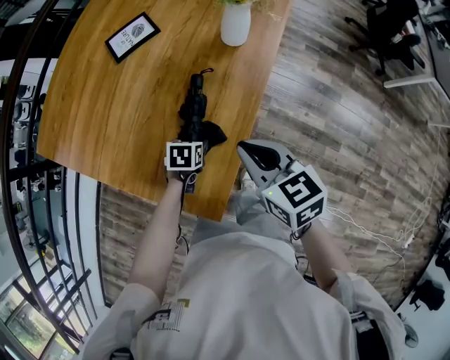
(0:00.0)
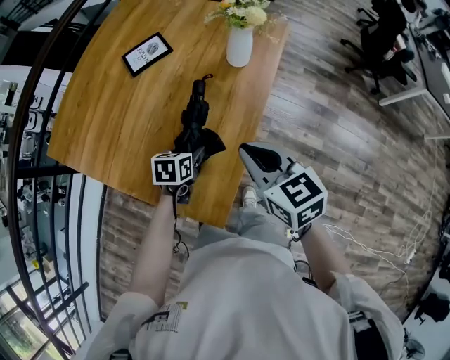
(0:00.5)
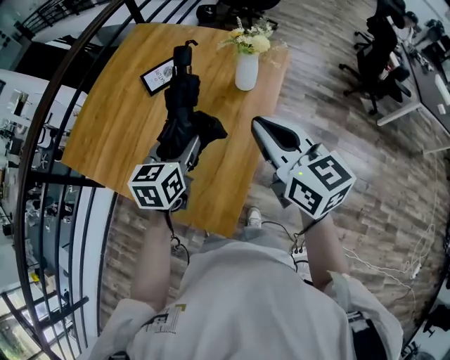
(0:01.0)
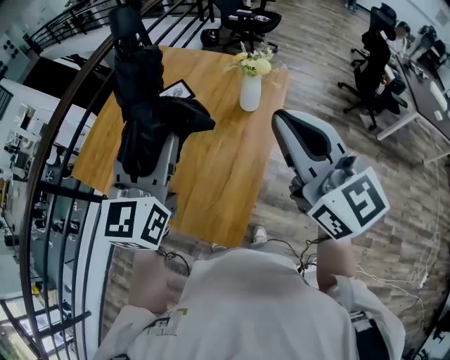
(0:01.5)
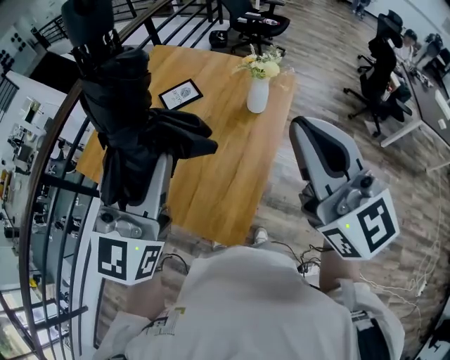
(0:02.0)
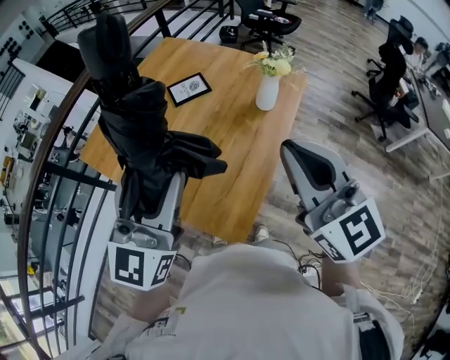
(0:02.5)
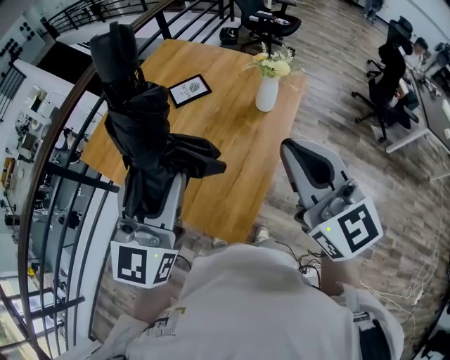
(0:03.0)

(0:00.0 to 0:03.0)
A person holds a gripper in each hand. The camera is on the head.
0:00.0 - 0:01.5: The left gripper moves upward, about 60 cm, and tips its fingers upward by roughly 70 degrees. Meanwhile the right gripper shifts some 35 cm upward, and points its fingers approximately 40 degrees further upward.
0:01.5 - 0:03.0: The left gripper goes approximately 10 cm backward, while the right gripper shifts by roughly 5 cm.

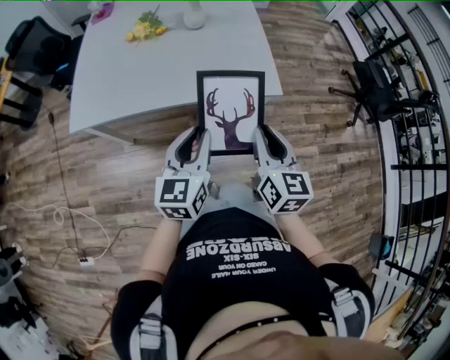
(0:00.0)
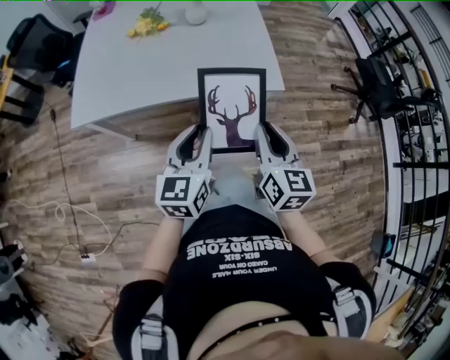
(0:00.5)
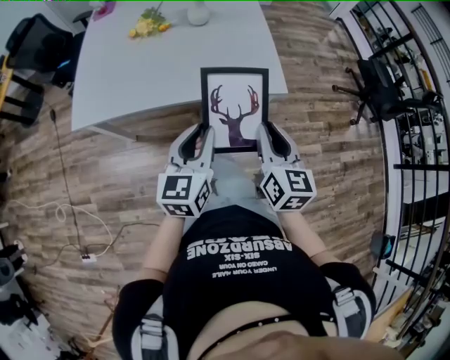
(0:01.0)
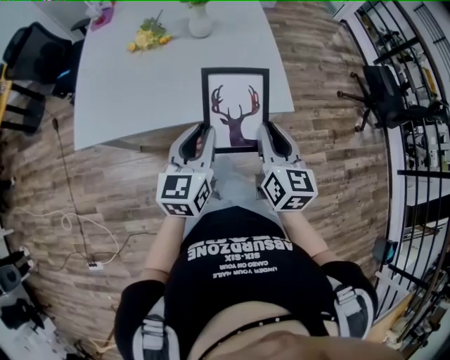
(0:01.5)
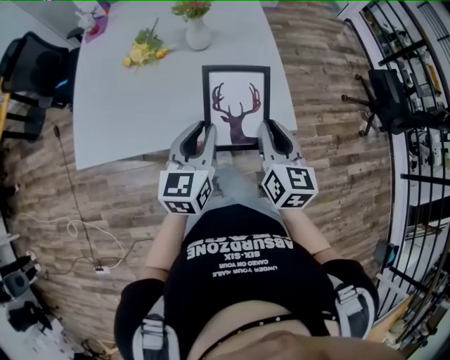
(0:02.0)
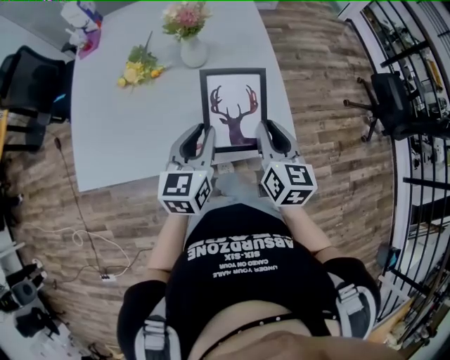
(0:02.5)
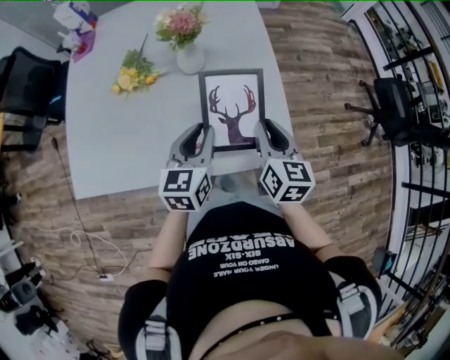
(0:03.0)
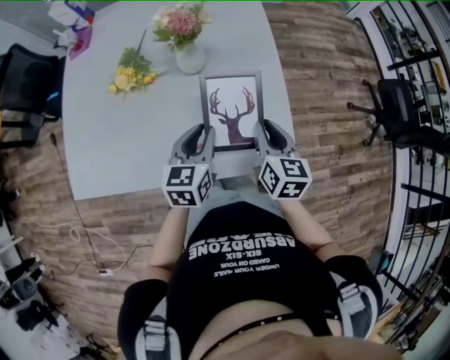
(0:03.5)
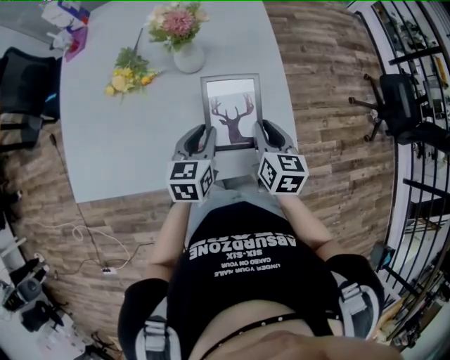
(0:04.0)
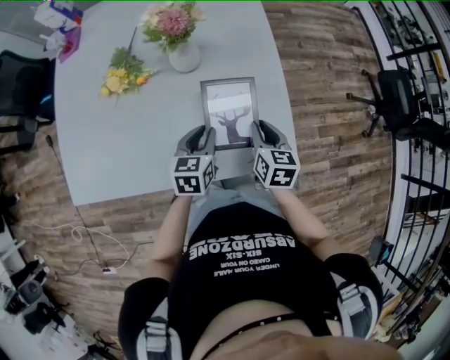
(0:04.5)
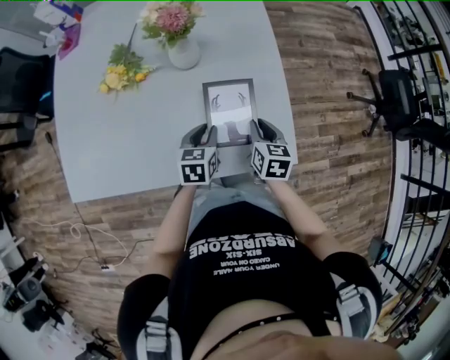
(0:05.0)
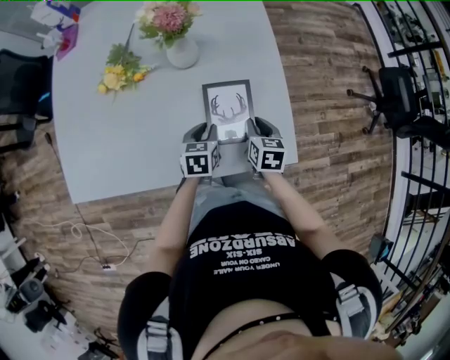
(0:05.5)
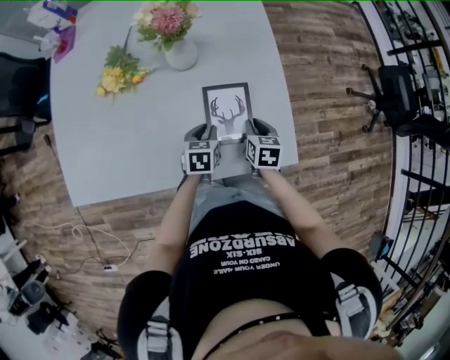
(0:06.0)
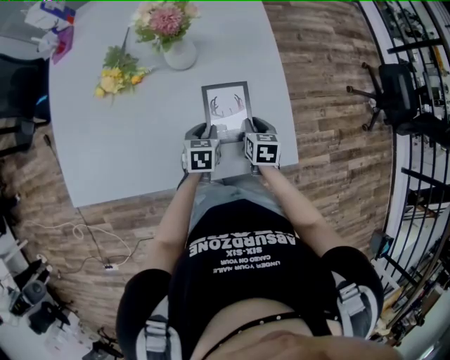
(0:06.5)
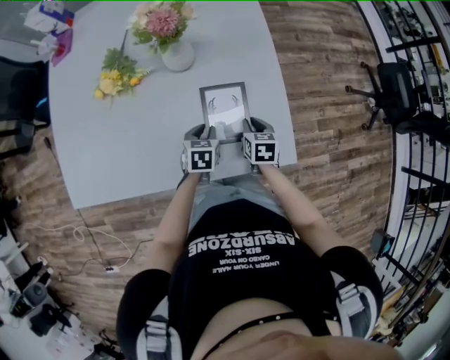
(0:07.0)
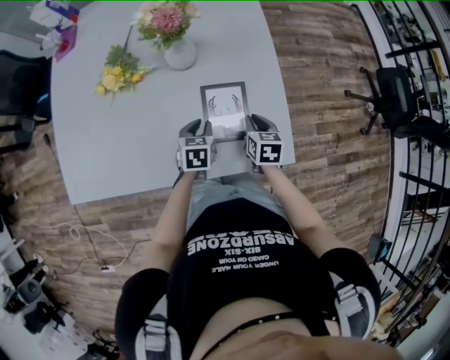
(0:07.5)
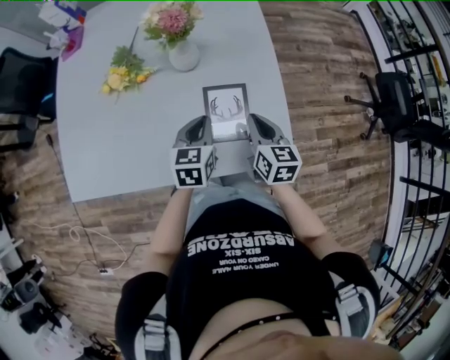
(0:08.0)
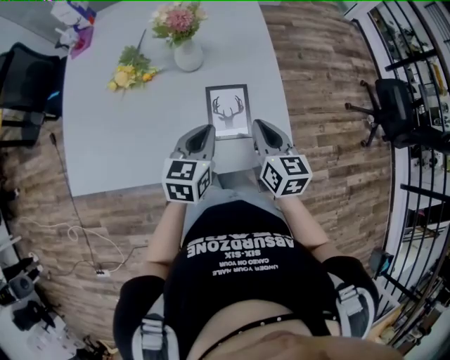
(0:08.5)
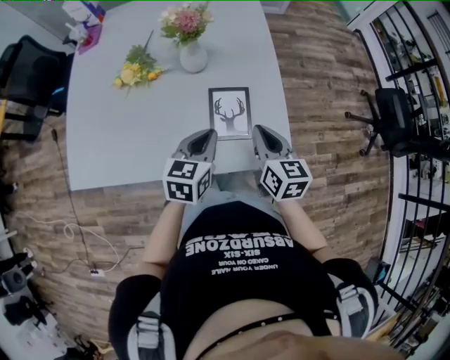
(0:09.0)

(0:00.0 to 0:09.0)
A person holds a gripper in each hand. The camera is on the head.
0:00.0 - 0:02.0: The two grippers go about 20 cm forward.
0:02.0 - 0:04.5: Both grippers travel together forward and downward, about 25 cm. The left gripper turns by approximately 20 degrees.
0:04.5 - 0:07.0: The two grippers go some 10 cm downward.
0:07.0 - 0:09.0: Both grippers travel together upward, roughly 20 cm. The right gripper rotates some 30 degrees; the left gripper changes its angle by approximately 20 degrees.

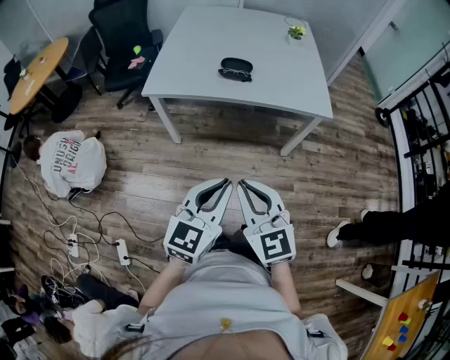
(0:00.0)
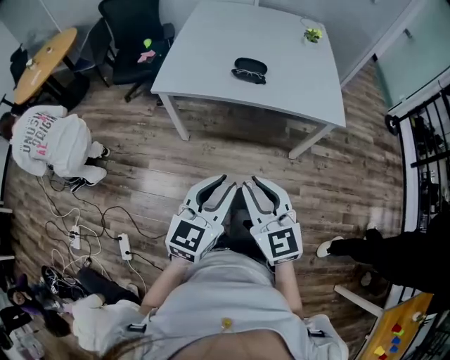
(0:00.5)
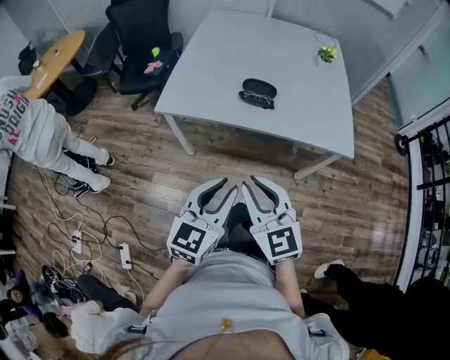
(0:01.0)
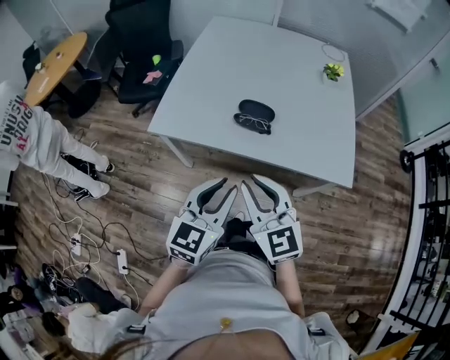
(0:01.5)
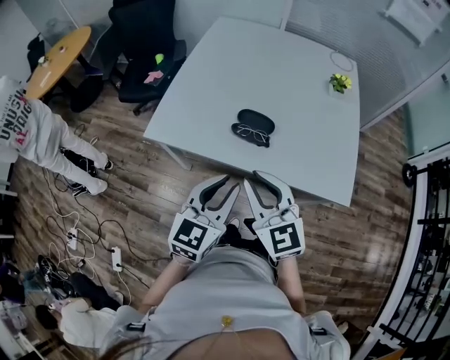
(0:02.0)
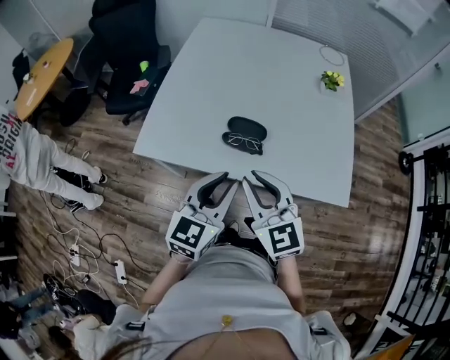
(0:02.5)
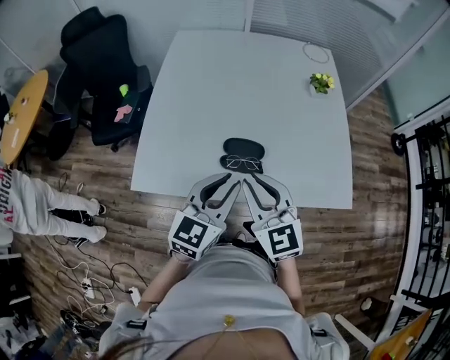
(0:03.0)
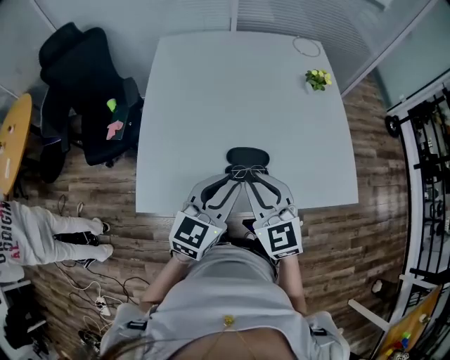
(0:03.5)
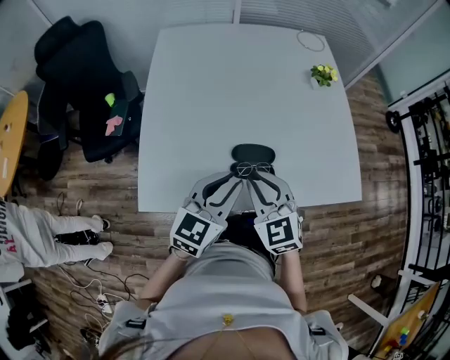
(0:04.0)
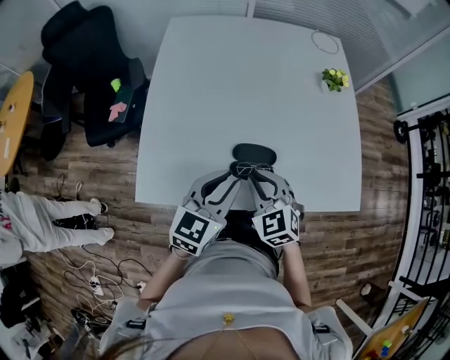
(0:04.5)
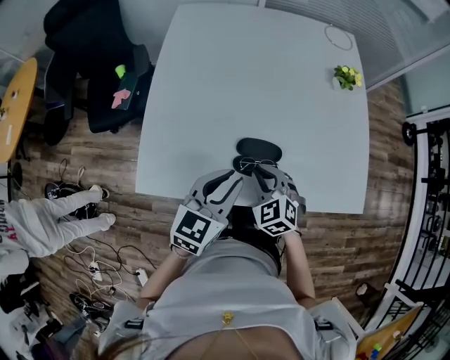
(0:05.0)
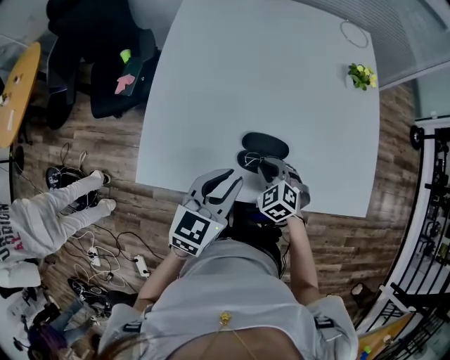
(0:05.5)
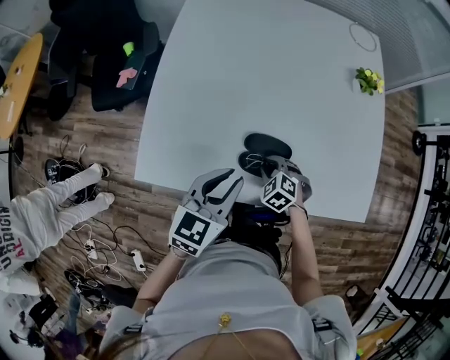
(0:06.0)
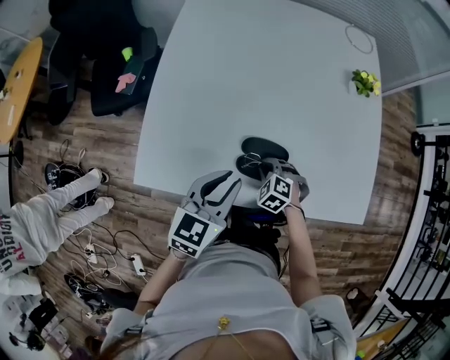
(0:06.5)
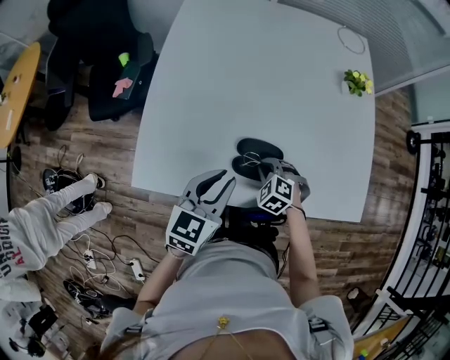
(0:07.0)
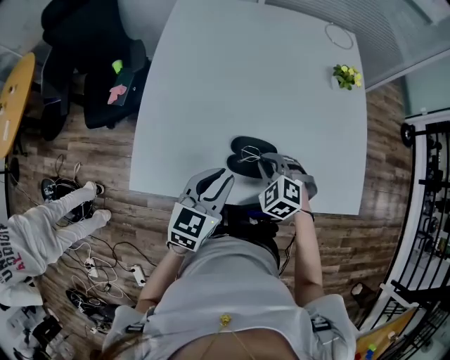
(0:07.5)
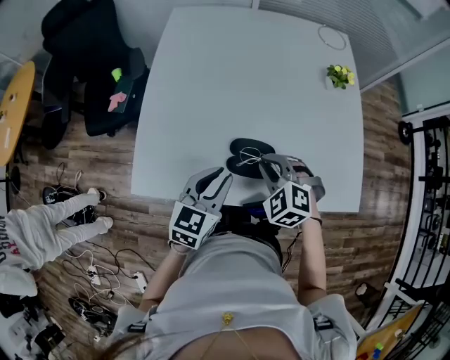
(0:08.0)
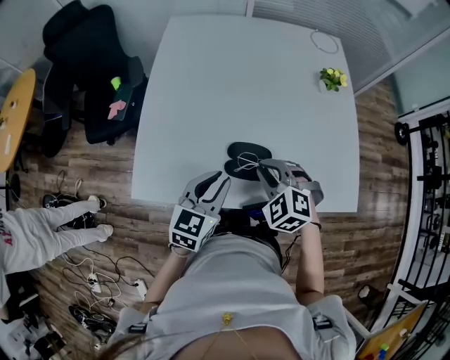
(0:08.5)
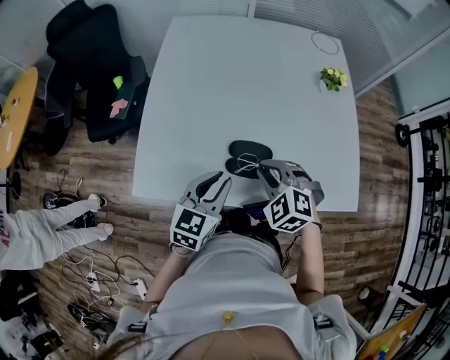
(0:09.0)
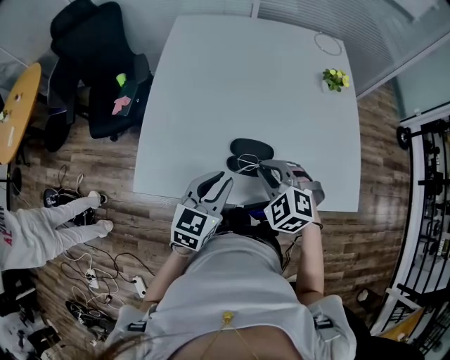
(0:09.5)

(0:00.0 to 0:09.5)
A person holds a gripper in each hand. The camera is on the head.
0:00.0 - 0:02.0: The grippers both shift forward by some 35 cm.
0:02.0 - 0:04.0: The grippers both shift forward by roughly 20 cm. The right gripper swivels about 20 degrees. The left gripper rotates about 20 degrees.
0:04.0 - 0:05.5: The right gripper shifts approximately 20 cm downward, and changes its angle by approximately 30 degrees.
0:05.5 - 0:07.5: The right gripper moves some 5 cm.
0:07.5 - 0:09.5: The right gripper is displaced upward by approximately 10 cm.

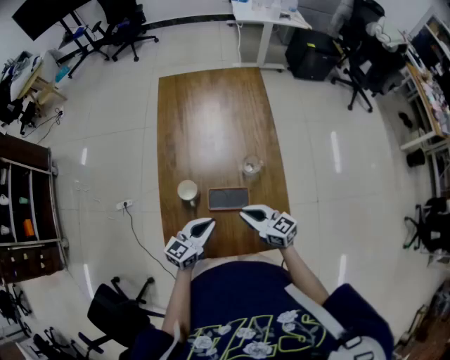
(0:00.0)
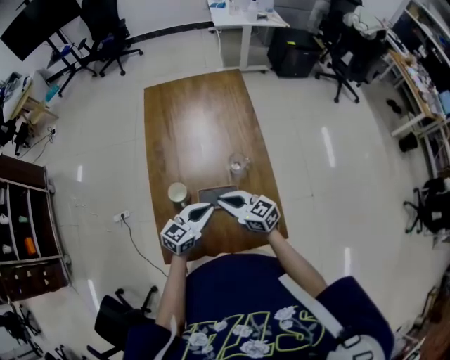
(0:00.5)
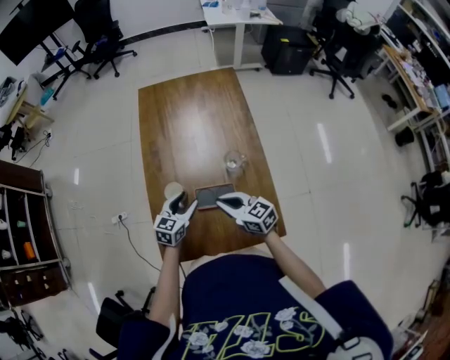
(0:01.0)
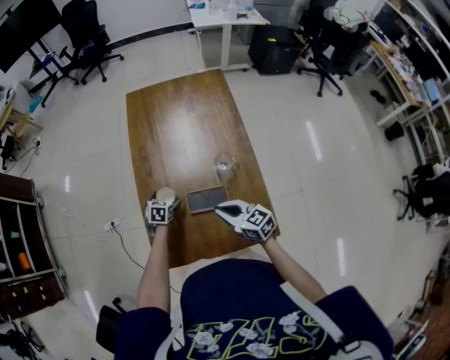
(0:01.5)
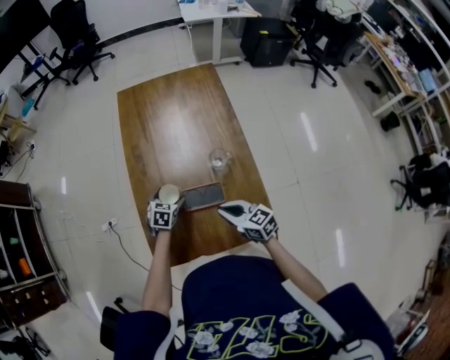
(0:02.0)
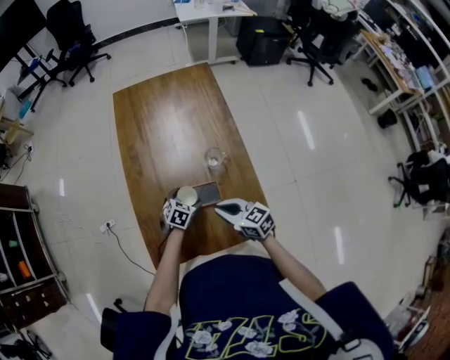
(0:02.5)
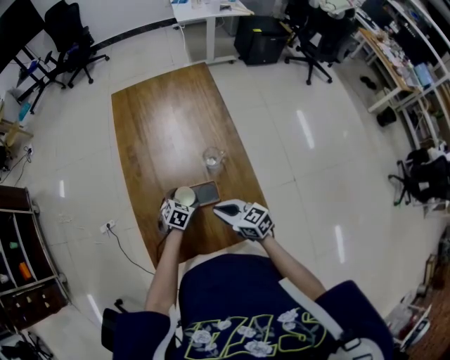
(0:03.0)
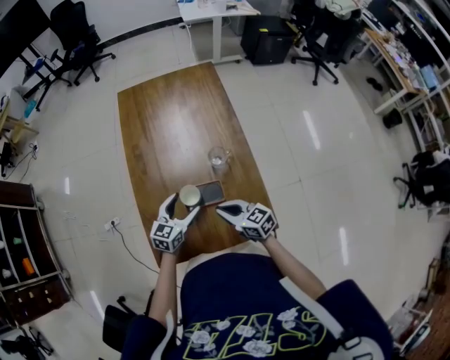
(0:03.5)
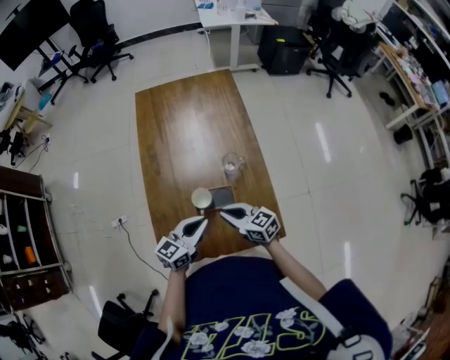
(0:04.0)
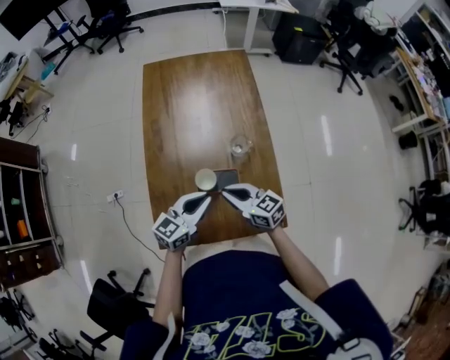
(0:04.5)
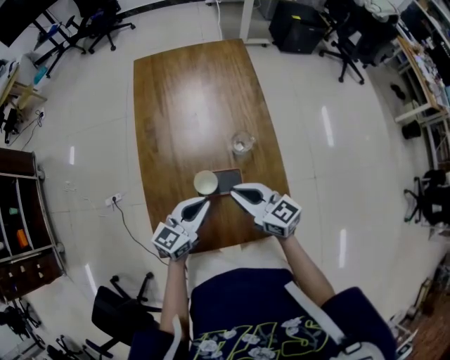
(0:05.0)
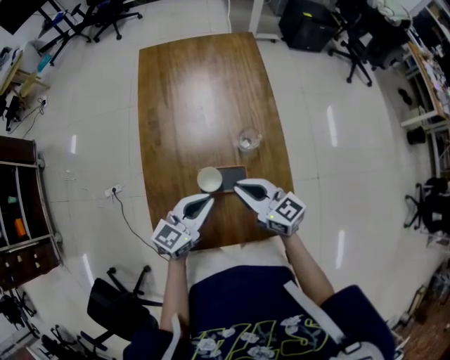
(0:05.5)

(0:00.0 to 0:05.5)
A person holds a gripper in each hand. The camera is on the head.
0:00.0 - 0:02.0: The left gripper travels forward and downward by about 20 cm, angles its fingers downward, by approximately 40 degrees, and opens up.
0:02.0 - 0:03.5: The left gripper goes approximately 15 cm upward, backward and to the right, and swivels roughly 30 degrees.
0:03.5 - 0:05.5: The left gripper closes up. The right gripper heads forward, covering some 5 cm.
